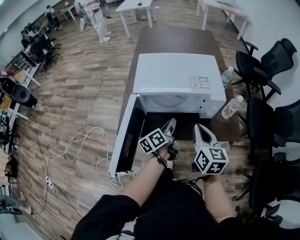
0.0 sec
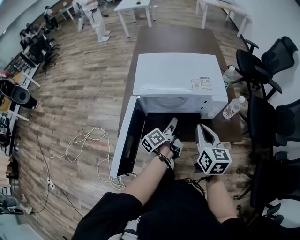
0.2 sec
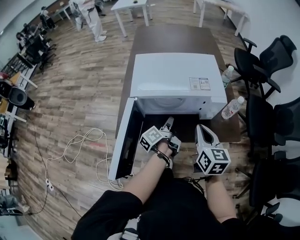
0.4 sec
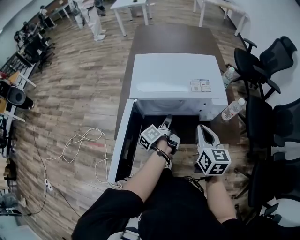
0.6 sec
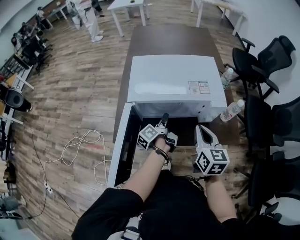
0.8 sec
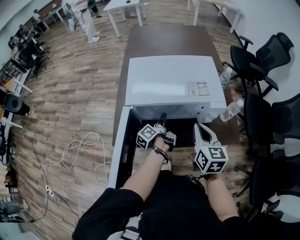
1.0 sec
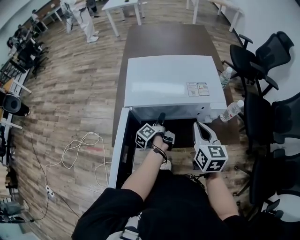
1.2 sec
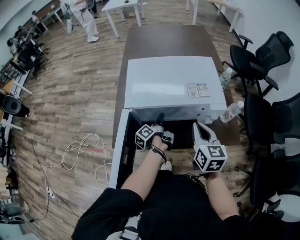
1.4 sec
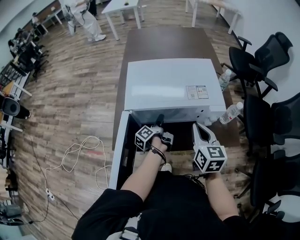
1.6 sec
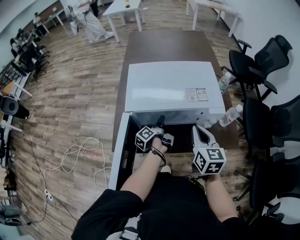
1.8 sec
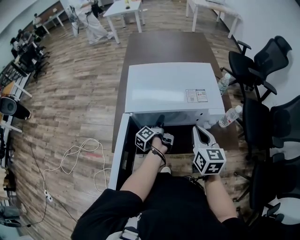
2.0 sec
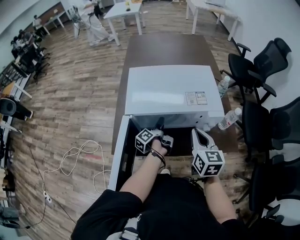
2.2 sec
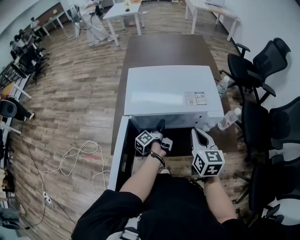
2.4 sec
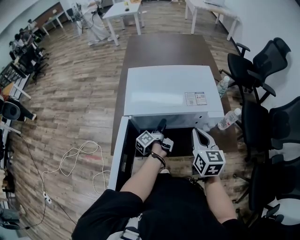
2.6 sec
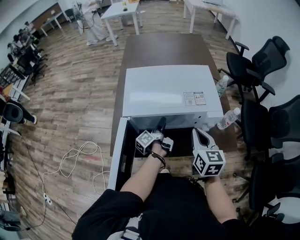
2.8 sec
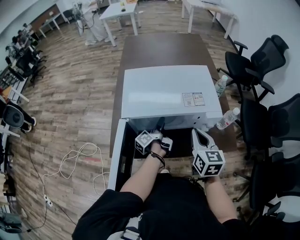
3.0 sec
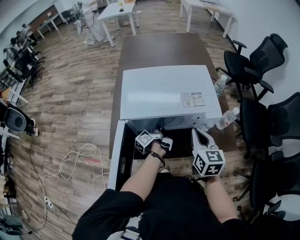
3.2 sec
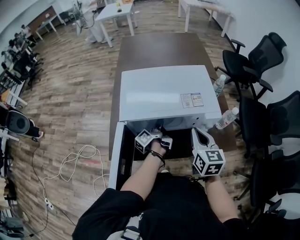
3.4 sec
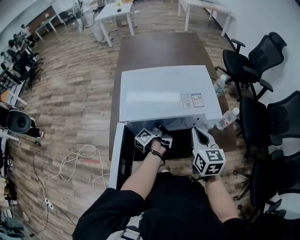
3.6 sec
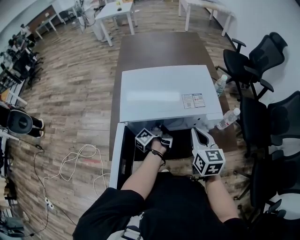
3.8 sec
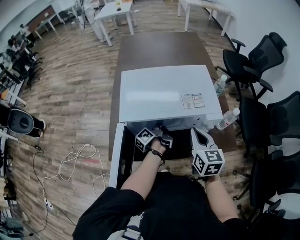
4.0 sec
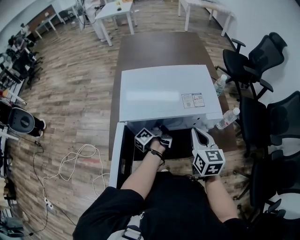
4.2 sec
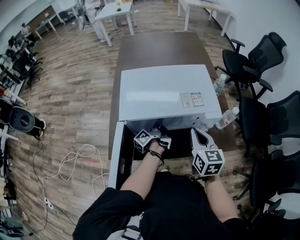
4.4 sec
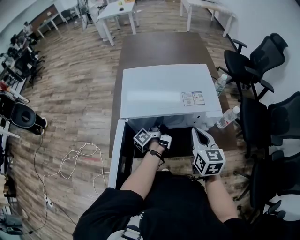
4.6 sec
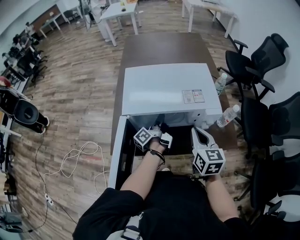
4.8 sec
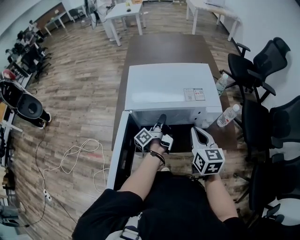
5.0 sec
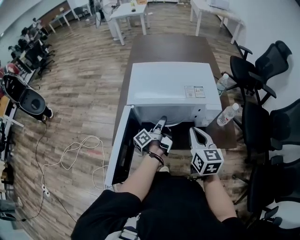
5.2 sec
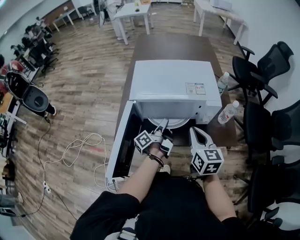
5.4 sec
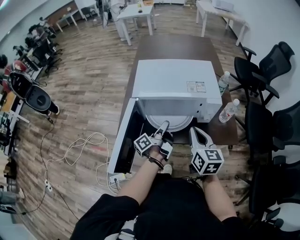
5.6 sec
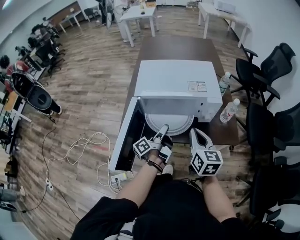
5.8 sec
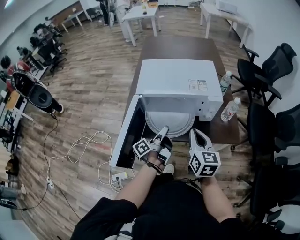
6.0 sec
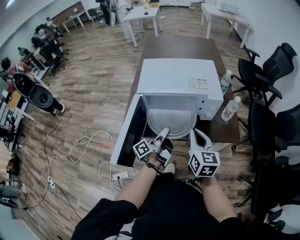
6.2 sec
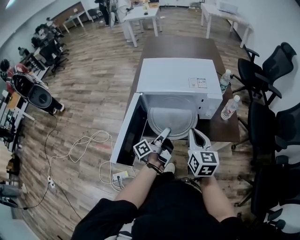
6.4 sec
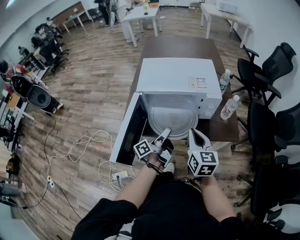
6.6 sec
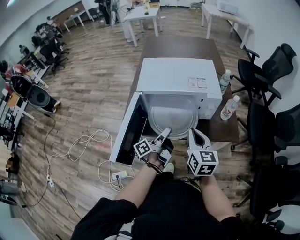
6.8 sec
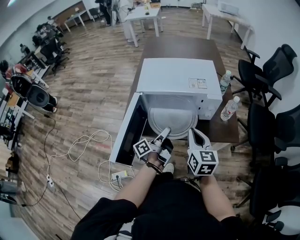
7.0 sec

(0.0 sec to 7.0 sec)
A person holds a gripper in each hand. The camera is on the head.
0.0 sec - 1.4 sec: The left gripper goes some 15 cm forward and downward, changes its angle by roughly 30 degrees, and opens up. The right gripper travels forward by some 5 cm.
1.4 sec - 2.8 sec: There are only small adjustments of the grippers.
2.8 sec - 4.2 sec: The left gripper closes its fingers.
4.2 sec - 5.6 sec: The right gripper moves backward, approximately 10 cm; the left gripper goes some 15 cm backward and upward.
5.6 sec - 7.0 sec: The left gripper is displaced backward by some 5 cm.

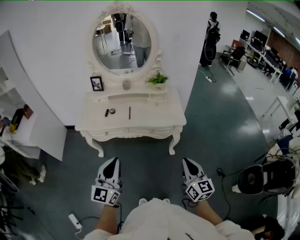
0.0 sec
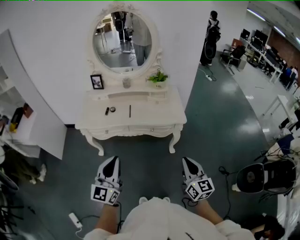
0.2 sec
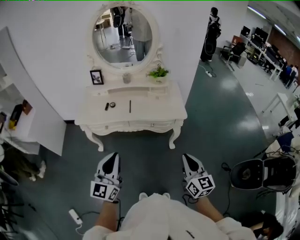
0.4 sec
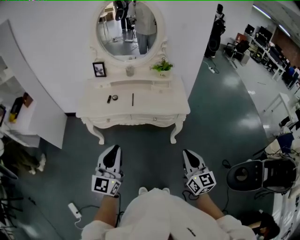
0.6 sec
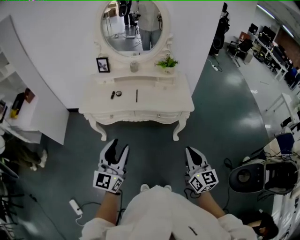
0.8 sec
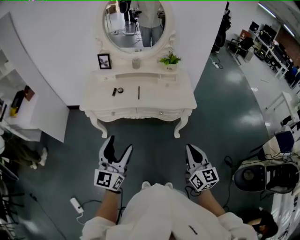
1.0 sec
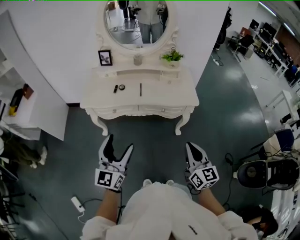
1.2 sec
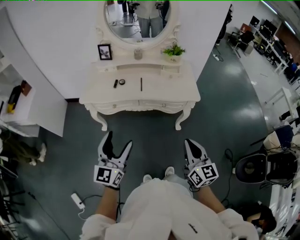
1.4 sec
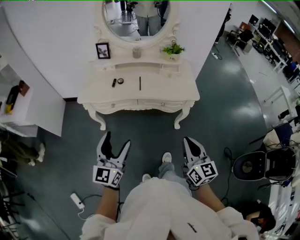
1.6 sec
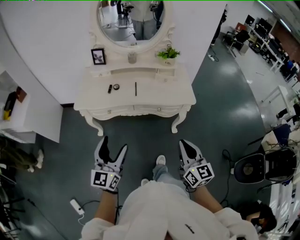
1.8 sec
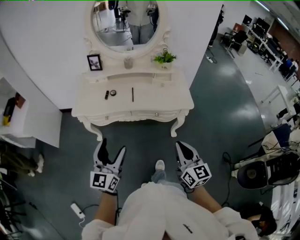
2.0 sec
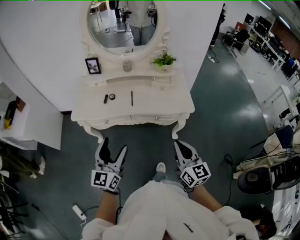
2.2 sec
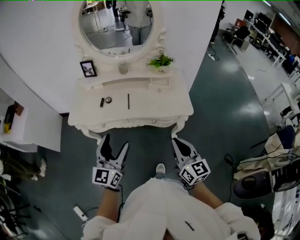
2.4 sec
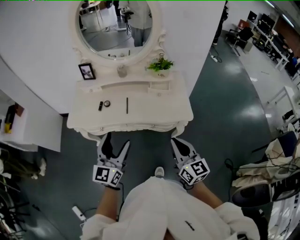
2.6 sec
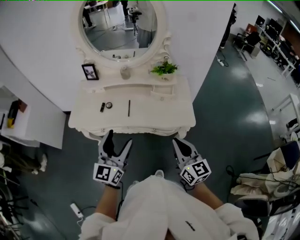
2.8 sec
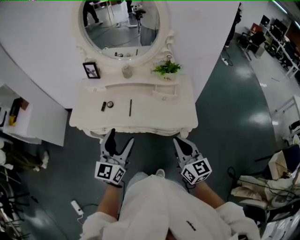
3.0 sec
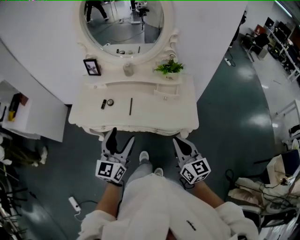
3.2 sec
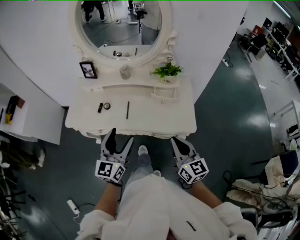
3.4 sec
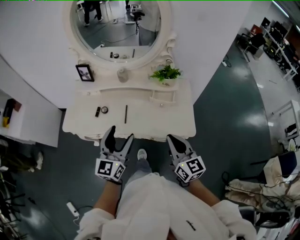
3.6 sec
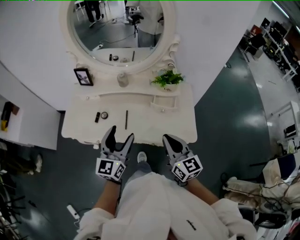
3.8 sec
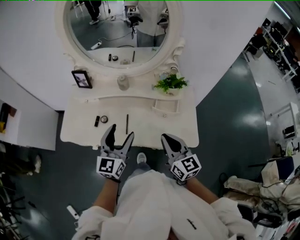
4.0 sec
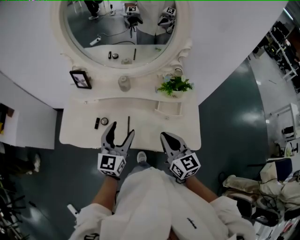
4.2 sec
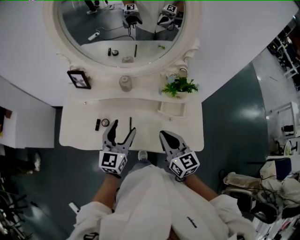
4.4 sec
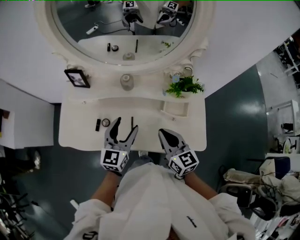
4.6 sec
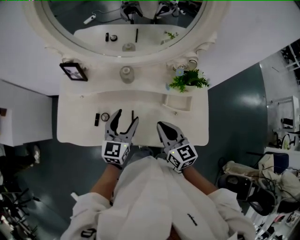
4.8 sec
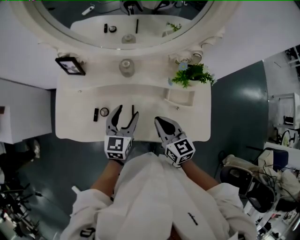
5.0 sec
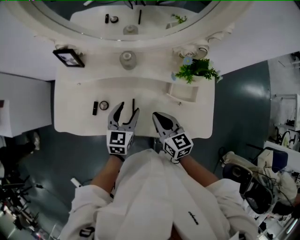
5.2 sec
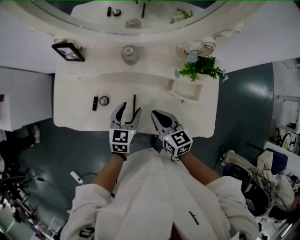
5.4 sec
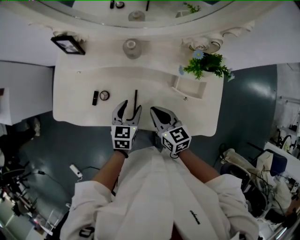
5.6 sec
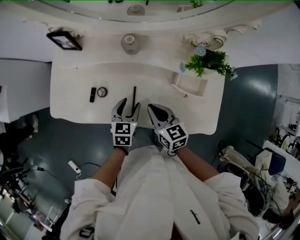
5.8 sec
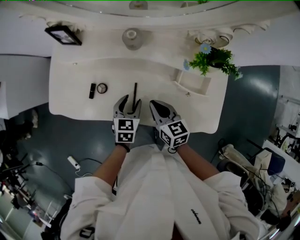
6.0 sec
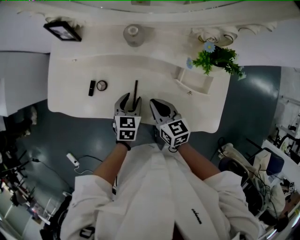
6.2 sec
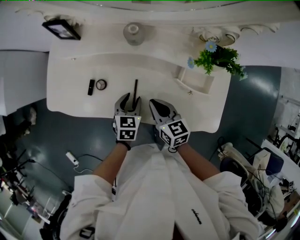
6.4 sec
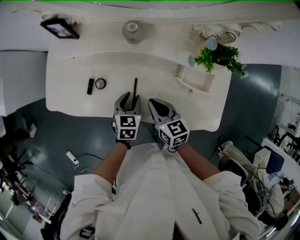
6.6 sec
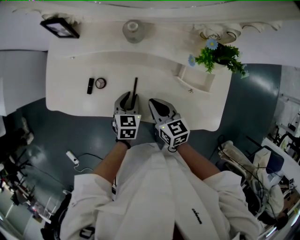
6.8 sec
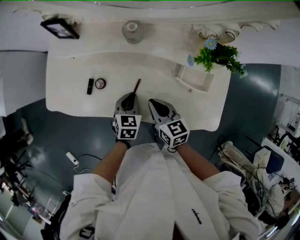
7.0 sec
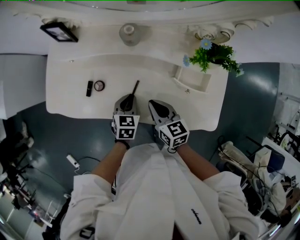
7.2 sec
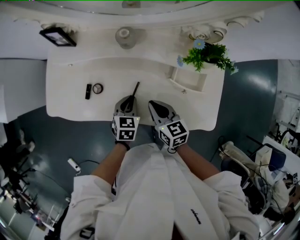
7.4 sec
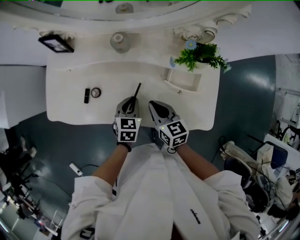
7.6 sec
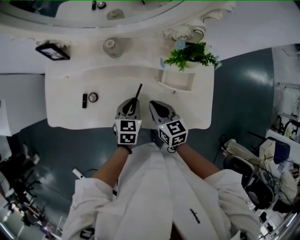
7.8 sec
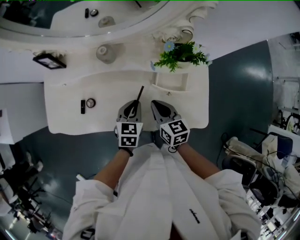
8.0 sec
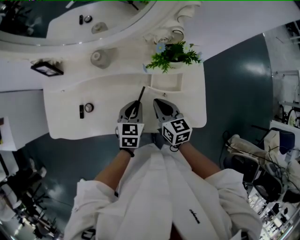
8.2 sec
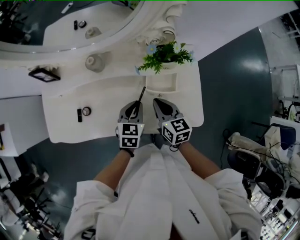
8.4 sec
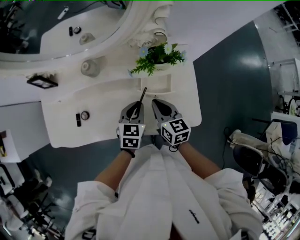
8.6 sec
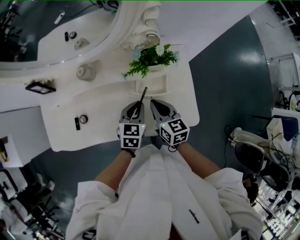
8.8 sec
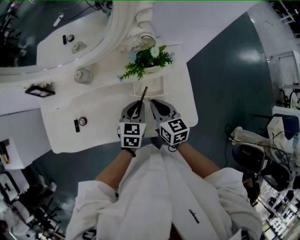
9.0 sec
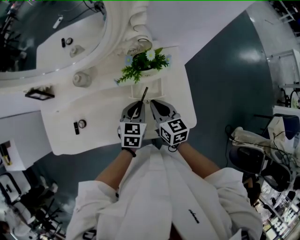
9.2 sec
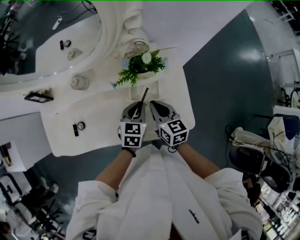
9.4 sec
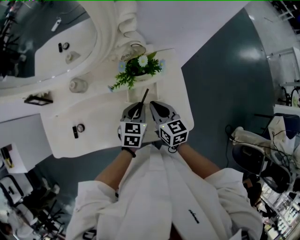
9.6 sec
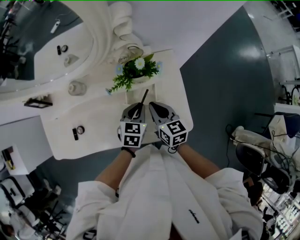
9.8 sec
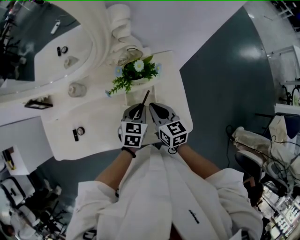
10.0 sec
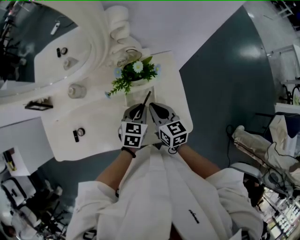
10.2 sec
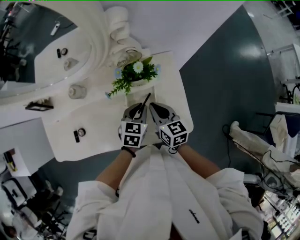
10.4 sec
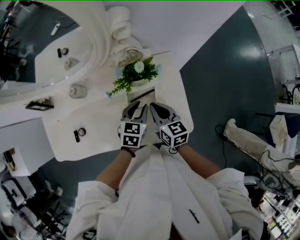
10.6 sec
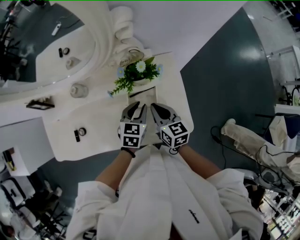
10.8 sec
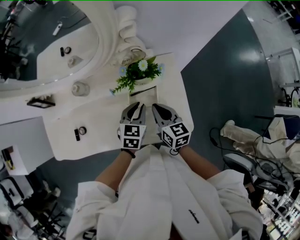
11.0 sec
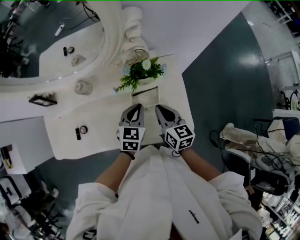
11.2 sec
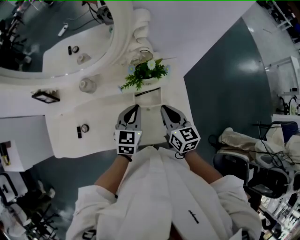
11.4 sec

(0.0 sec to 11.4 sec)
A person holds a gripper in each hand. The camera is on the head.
0.0 sec - 1.4 sec: Both grippers travel together to the left, about 10 cm. The left gripper opens its fingers.
1.4 sec - 2.8 sec: The left gripper goes roughly 25 cm forward and to the right. The right gripper moves forward, about 20 cm.
2.8 sec - 4.2 sec: Both grippers move forward, some 25 cm.
4.2 sec - 5.6 sec: The right gripper is displaced downward, forward and to the left by approximately 20 cm, and rotates some 20 degrees. The left gripper travels downward by roughly 20 cm, and points its fingers roughly 30 degrees further downward.
5.6 sec - 7.2 sec: The left gripper travels downward by about 5 cm, and closes.
7.2 sec - 8.6 sec: The right gripper shifts roughly 15 cm to the right, and rotates some 20 degrees. Meanwhile the left gripper shifts some 20 cm to the right and upward.
8.6 sec - 10.0 sec: Both grippers travel together to the right, about 10 cm.
10.0 sec - 11.4 sec: The left gripper shifts approximately 10 cm upward and to the left; the right gripper is displaced upward by approximately 5 cm.

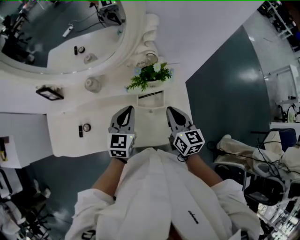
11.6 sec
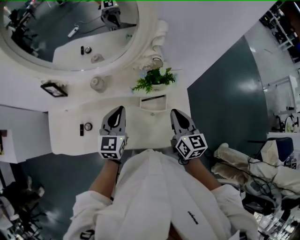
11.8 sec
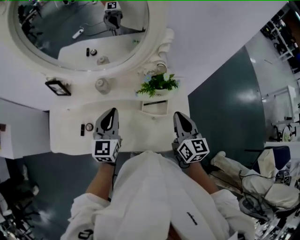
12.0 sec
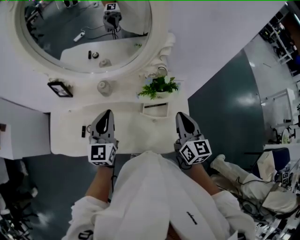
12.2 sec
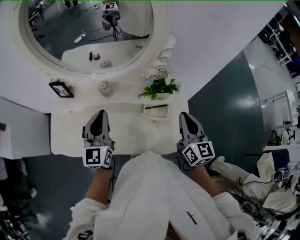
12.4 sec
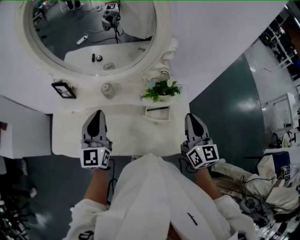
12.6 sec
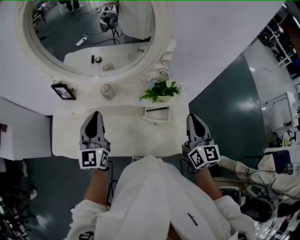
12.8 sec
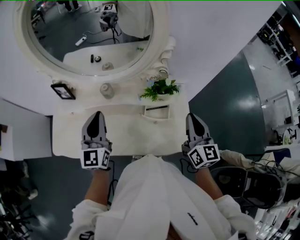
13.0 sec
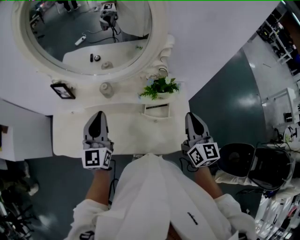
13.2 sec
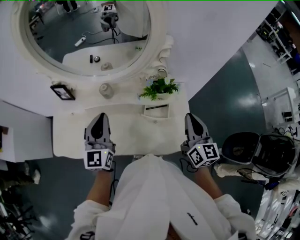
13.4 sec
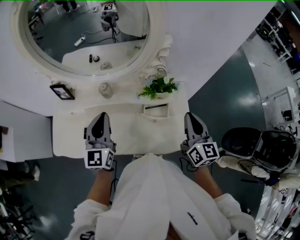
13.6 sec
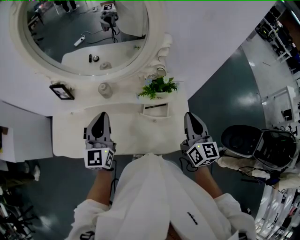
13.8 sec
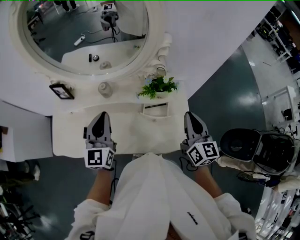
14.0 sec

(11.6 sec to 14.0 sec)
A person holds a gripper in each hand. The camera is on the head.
11.6 sec - 12.8 sec: The right gripper heads upward, covering about 15 cm, while the left gripper is displaced to the left and upward by roughly 20 cm, and swivels about 30 degrees.
12.8 sec - 14.0 sec: There are only small adjustments of the grippers.

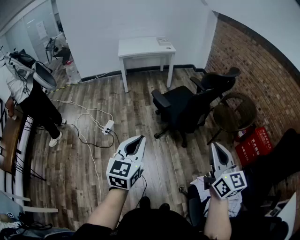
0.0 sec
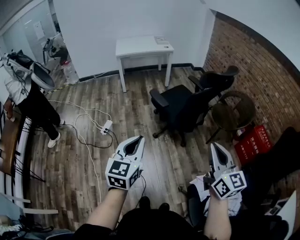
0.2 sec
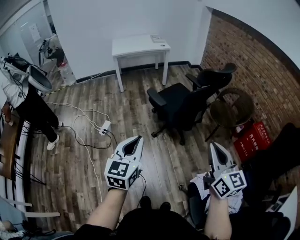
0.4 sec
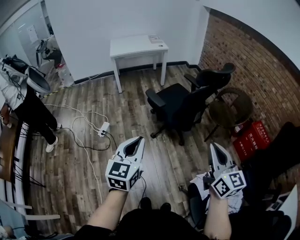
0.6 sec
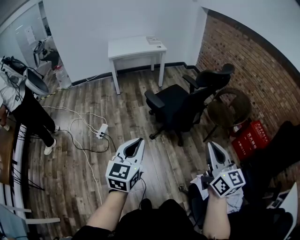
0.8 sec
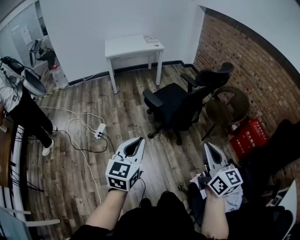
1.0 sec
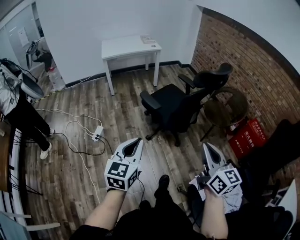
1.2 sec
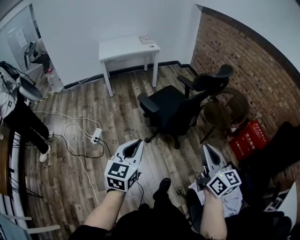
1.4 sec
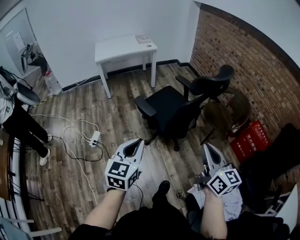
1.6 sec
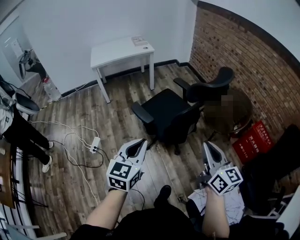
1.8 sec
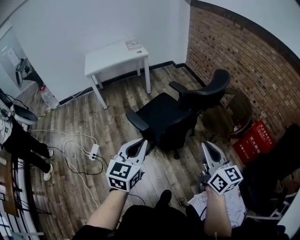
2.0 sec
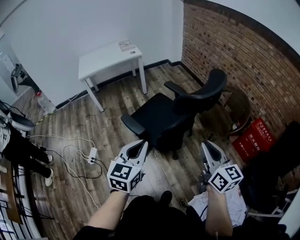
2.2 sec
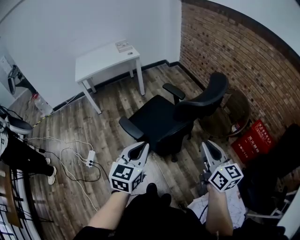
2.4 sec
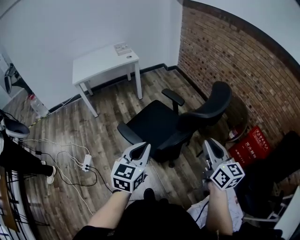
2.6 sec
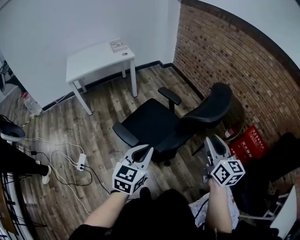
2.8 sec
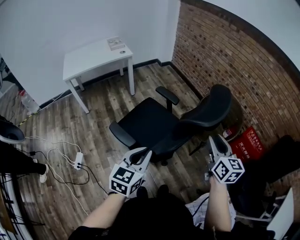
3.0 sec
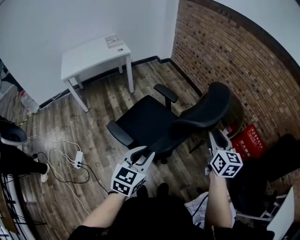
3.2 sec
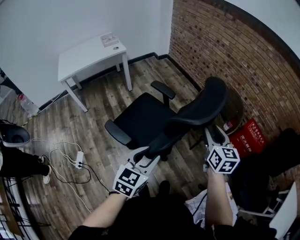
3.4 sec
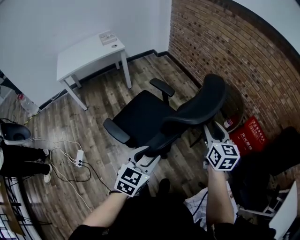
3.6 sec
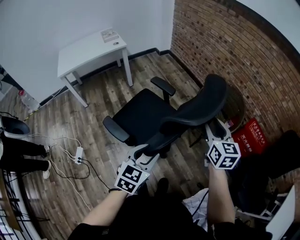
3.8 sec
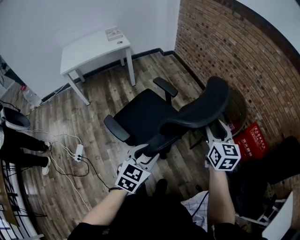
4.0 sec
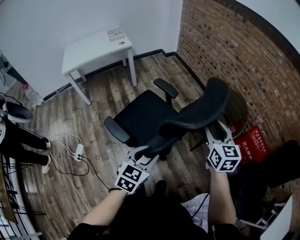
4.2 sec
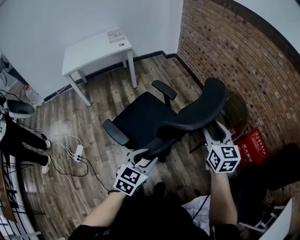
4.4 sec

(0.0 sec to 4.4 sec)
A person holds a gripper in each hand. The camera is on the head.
0.0 sec - 1.4 sec: Both grippers move forward, some 10 cm.
1.4 sec - 3.0 sec: Both grippers travel together forward, approximately 35 cm. The right gripper changes its angle by roughly 20 degrees, and opens.
3.0 sec - 4.4 sec: The right gripper heads forward, covering approximately 10 cm; the left gripper moves to the right, downward and forward, approximately 10 cm, and opens up.
